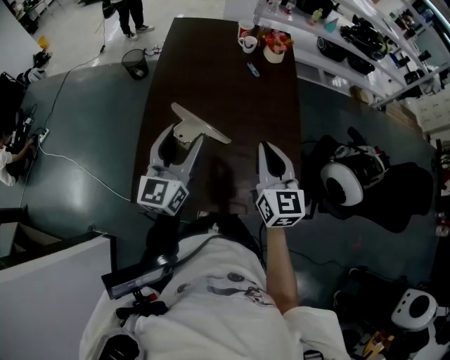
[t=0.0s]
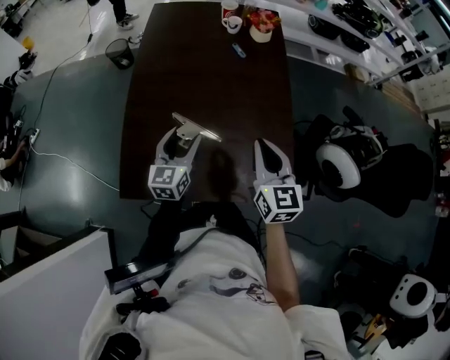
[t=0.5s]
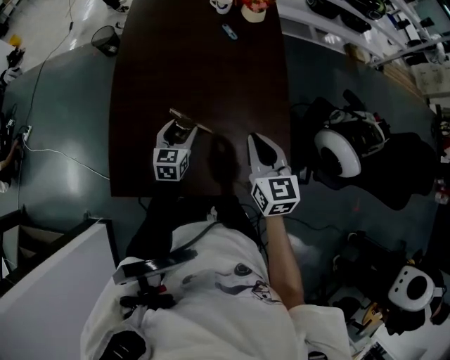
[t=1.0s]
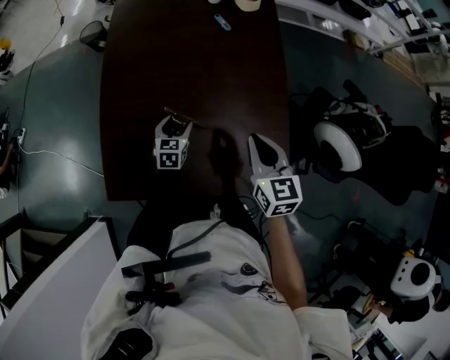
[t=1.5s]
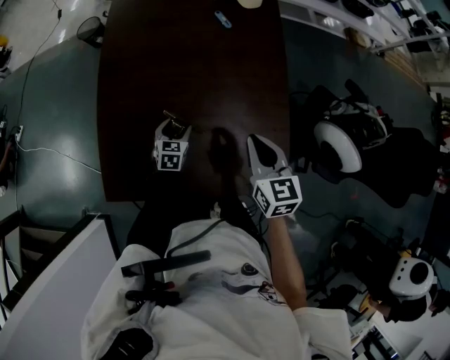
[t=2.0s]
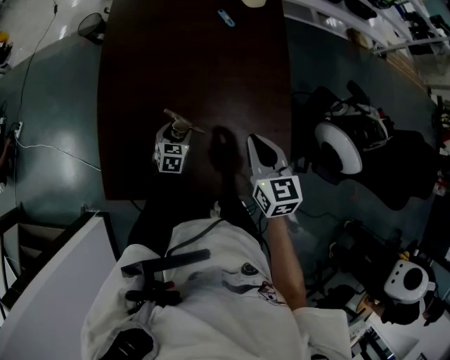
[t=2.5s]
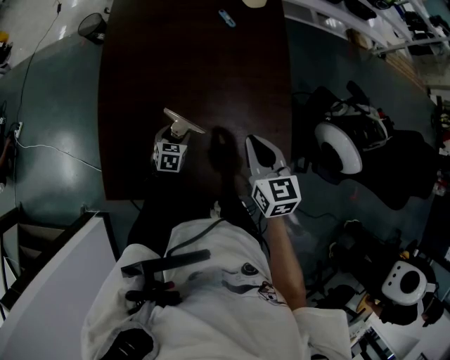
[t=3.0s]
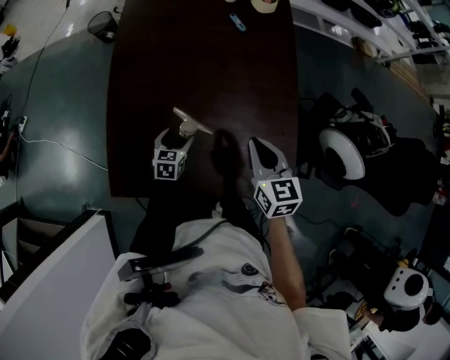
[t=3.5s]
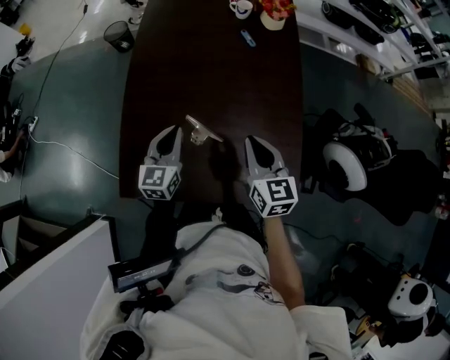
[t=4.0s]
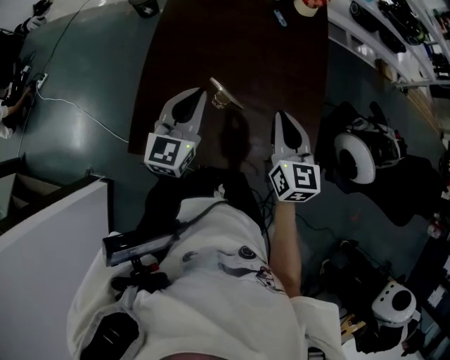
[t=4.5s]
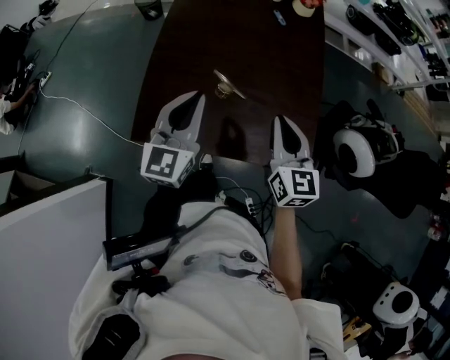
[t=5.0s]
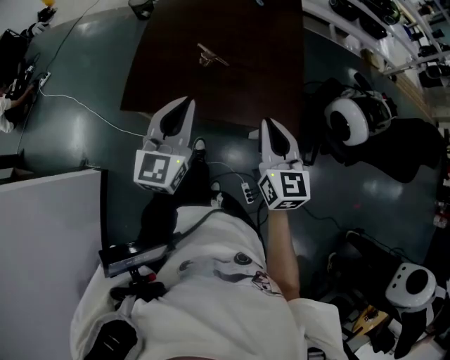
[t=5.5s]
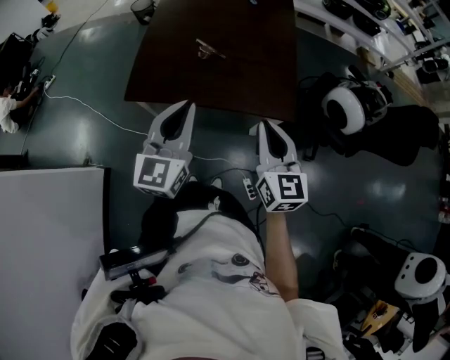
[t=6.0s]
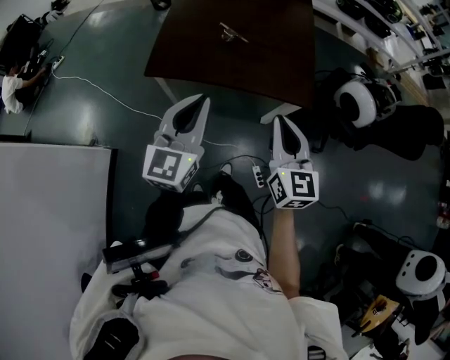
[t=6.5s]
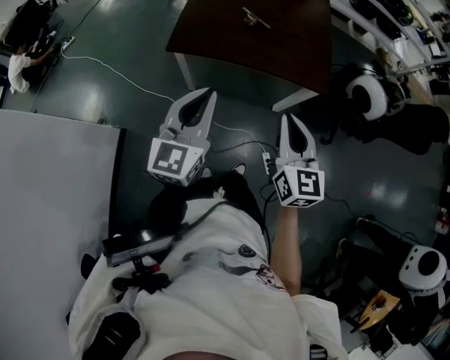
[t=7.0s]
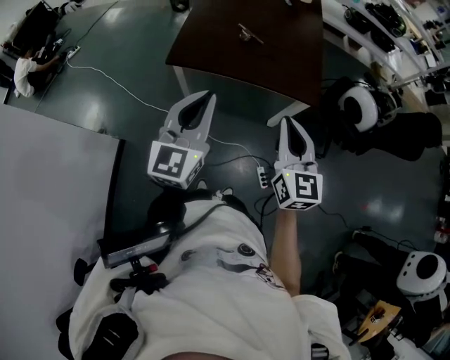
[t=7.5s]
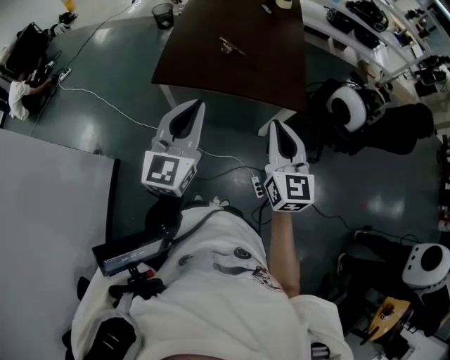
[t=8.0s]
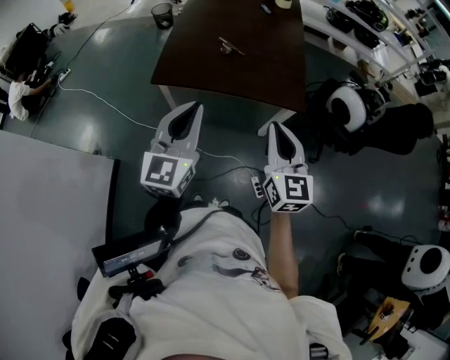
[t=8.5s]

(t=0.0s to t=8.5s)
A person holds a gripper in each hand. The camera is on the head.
t=0.0s - t=2.0s: The right gripper heads downward and to the right, covering some 15 cm, and turns by roughly 20 degrees; the left gripper shifts approximately 35 cm downward, and tilts its fingers roughly 50 degrees downward.
t=2.0s - t=4.0s: The right gripper is displaced to the left by about 5 cm, while the left gripper shifts roughly 20 cm upward, changes its angle by some 30 degrees, and closes its fingers.
t=4.0s - t=6.5s: The left gripper is displaced backward and upward by roughly 40 cm. The right gripper shifts some 35 cm backward.
t=6.5s - t=8.5s: The left gripper is displaced backward by roughly 5 cm; the right gripper shifts by about 5 cm.

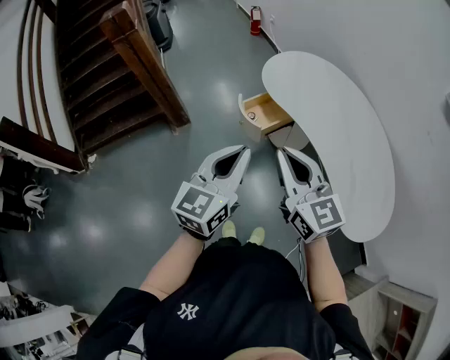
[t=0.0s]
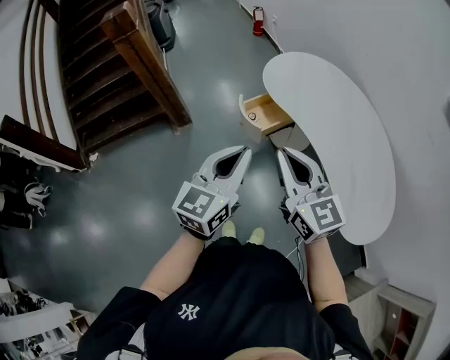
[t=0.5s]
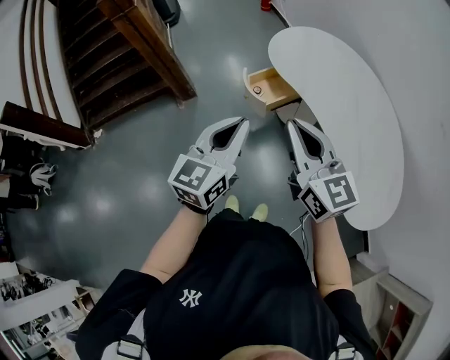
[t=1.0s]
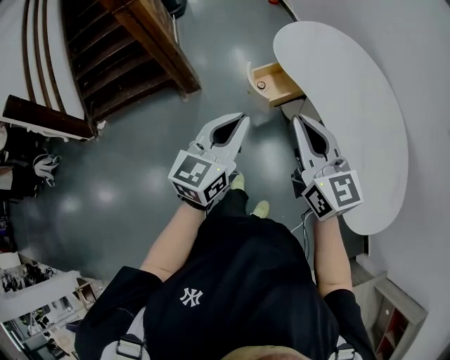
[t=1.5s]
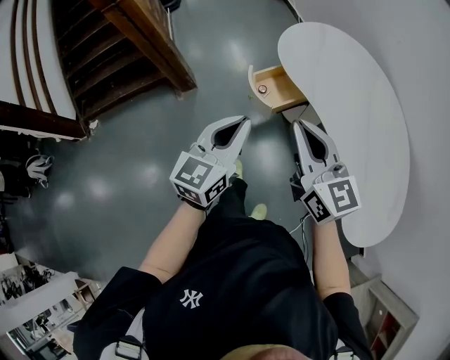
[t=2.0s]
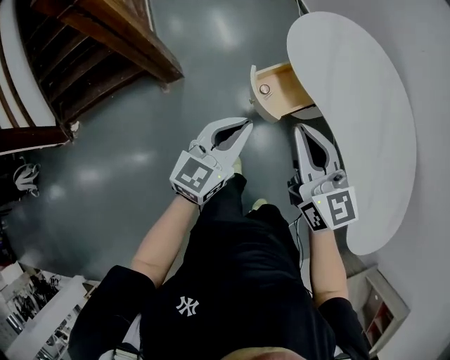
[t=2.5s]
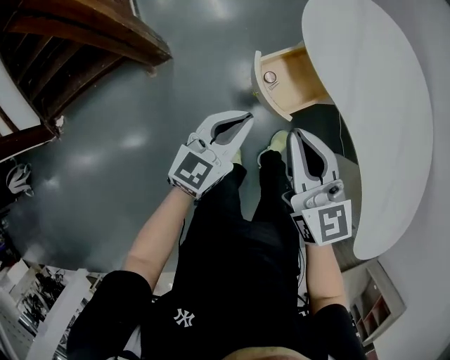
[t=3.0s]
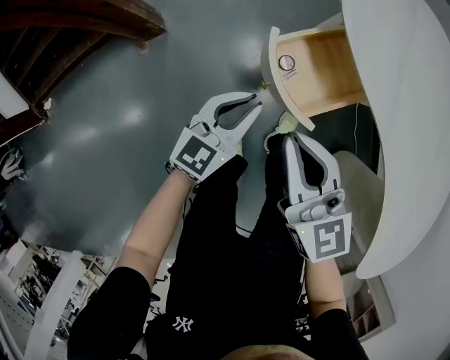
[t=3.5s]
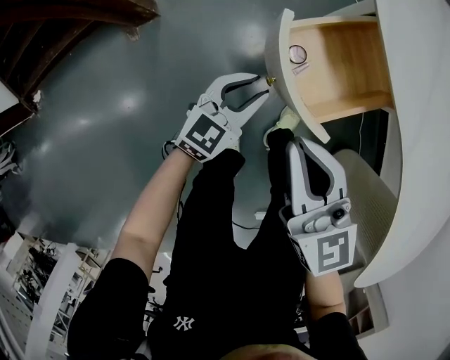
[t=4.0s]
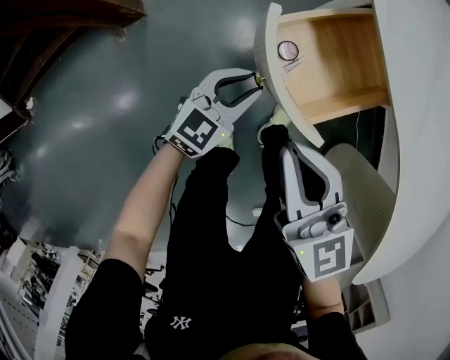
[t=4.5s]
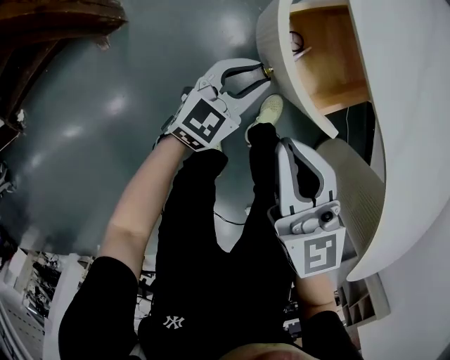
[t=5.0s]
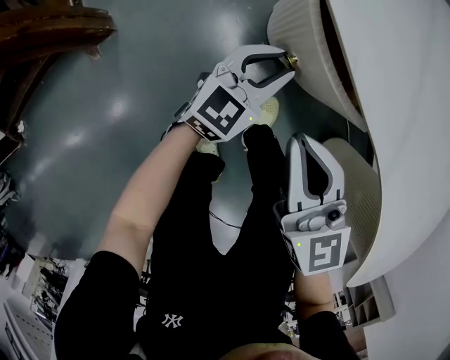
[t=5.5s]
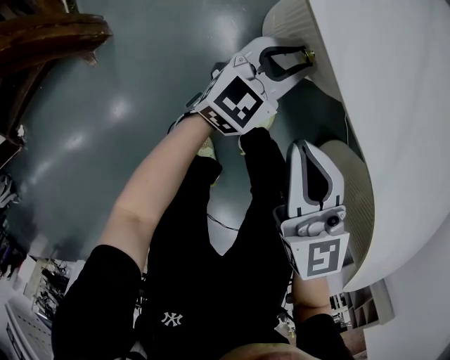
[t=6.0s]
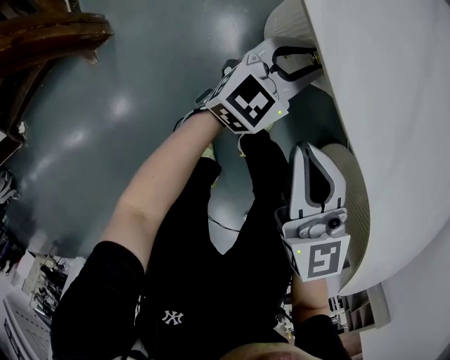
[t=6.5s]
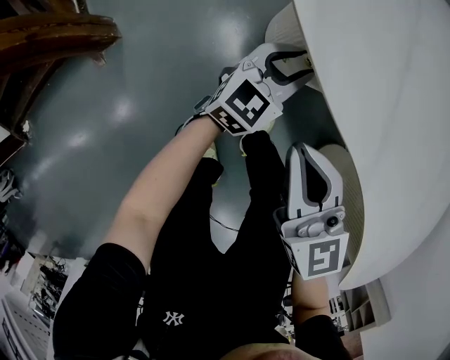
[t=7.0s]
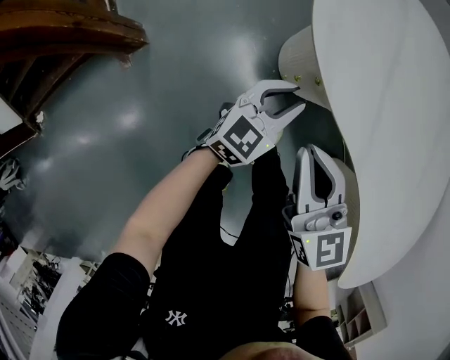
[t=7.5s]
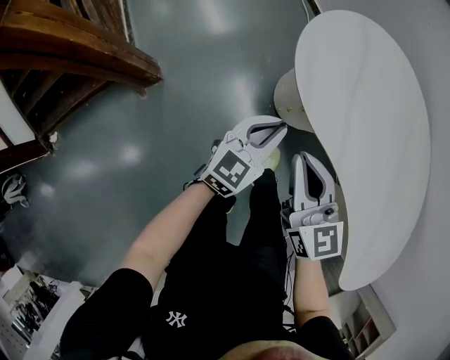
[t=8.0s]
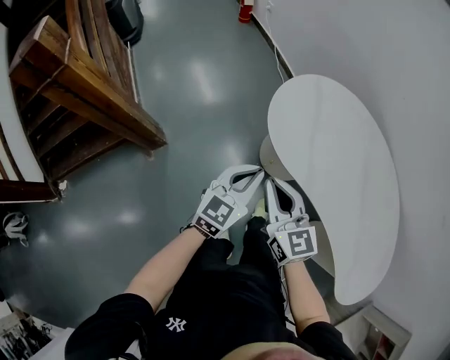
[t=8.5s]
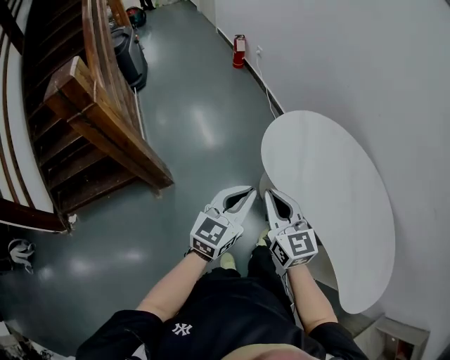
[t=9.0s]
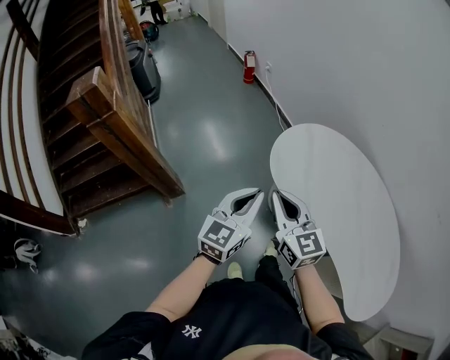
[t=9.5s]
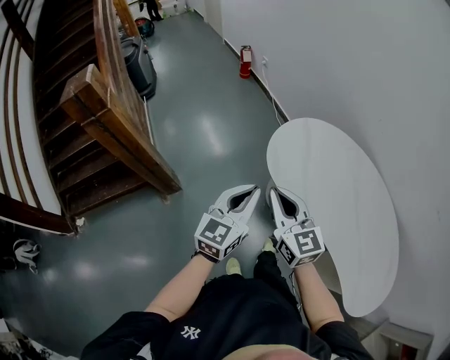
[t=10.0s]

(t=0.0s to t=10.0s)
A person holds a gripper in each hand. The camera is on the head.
t=0.0s - t=2.0s: The left gripper goes roughly 15 cm forward and downward. Meanwhile the right gripper is displaced forward by roughly 10 cm.
t=2.0s - t=4.0s: The grippers both shift downward and forward by roughly 50 cm. The left gripper changes its angle by some 20 degrees, and opens up.
t=4.0s - t=6.0s: The right gripper travels to the right, forward and downward by approximately 15 cm, while the left gripper is displaced to the right and forward by some 25 cm.
t=6.0s - t=8.0s: The right gripper heads upward, covering approximately 20 cm. Meanwhile the left gripper is displaced upward, to the left and backward by roughly 25 cm.
t=8.0s - t=10.0s: The two grippers go some 20 cm upward.

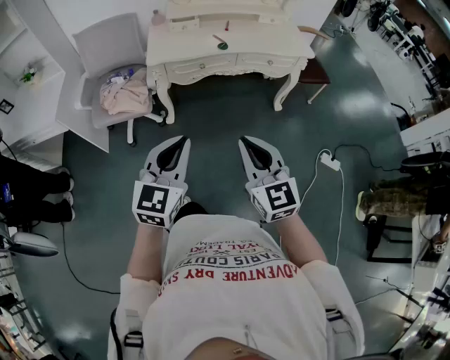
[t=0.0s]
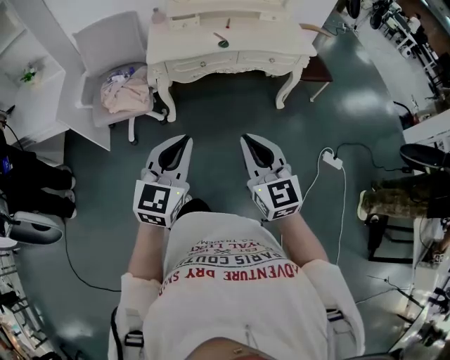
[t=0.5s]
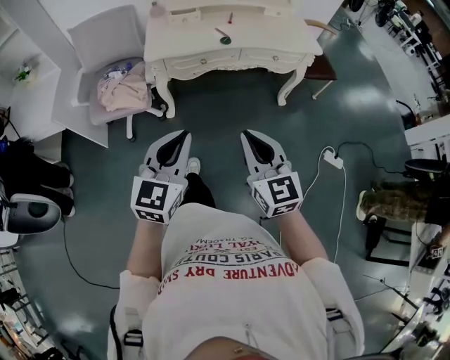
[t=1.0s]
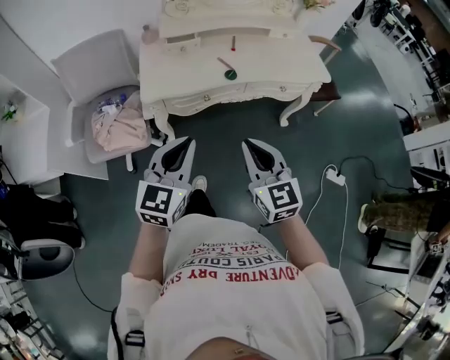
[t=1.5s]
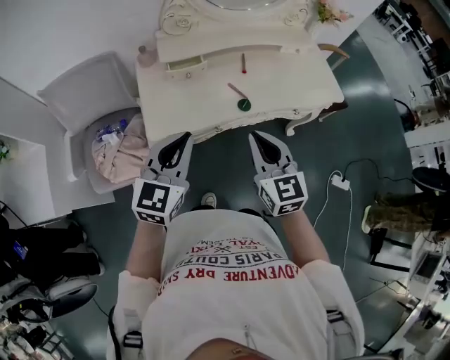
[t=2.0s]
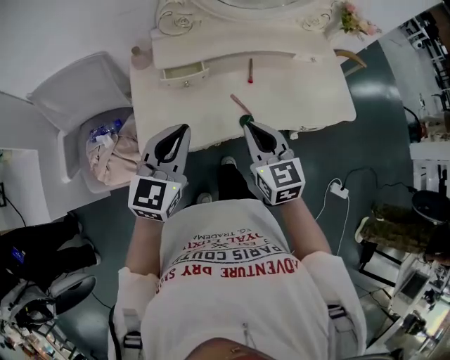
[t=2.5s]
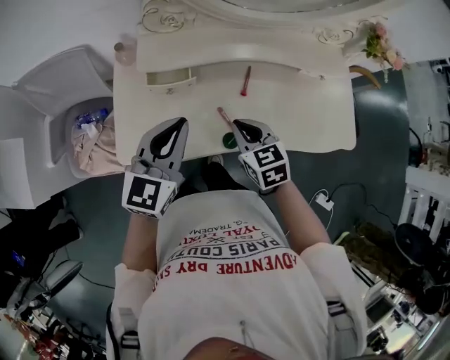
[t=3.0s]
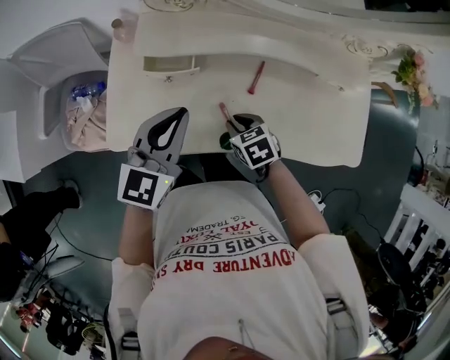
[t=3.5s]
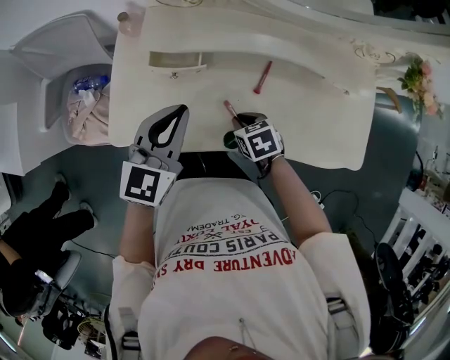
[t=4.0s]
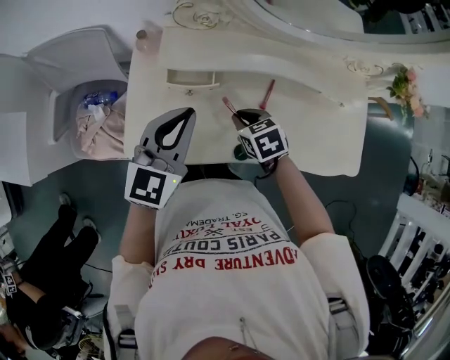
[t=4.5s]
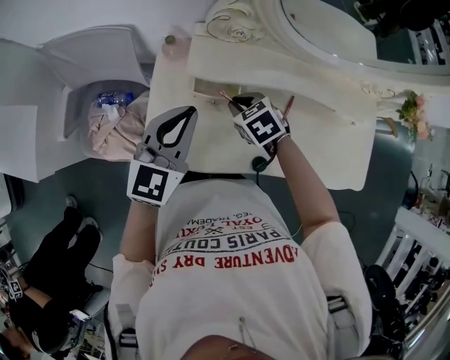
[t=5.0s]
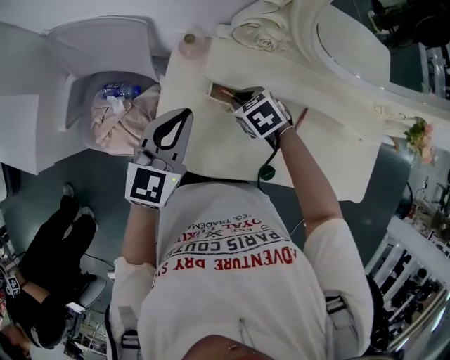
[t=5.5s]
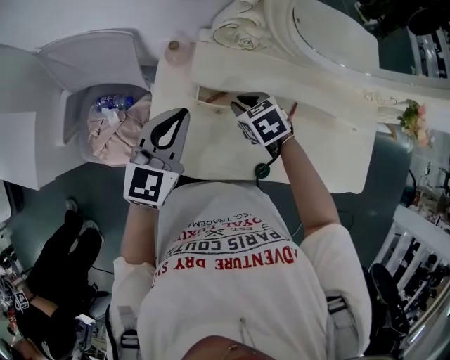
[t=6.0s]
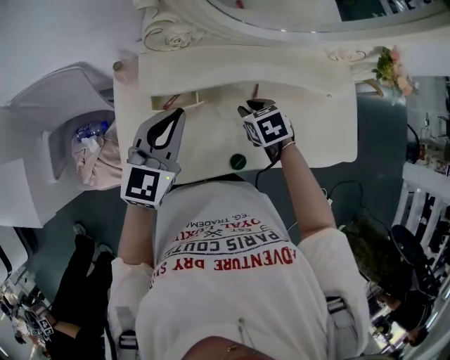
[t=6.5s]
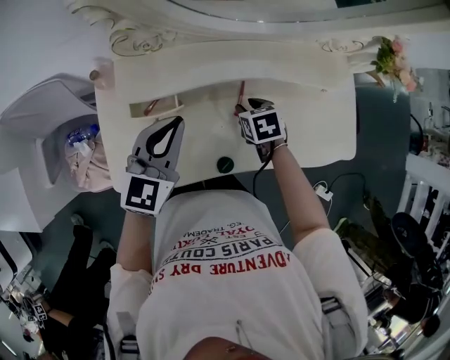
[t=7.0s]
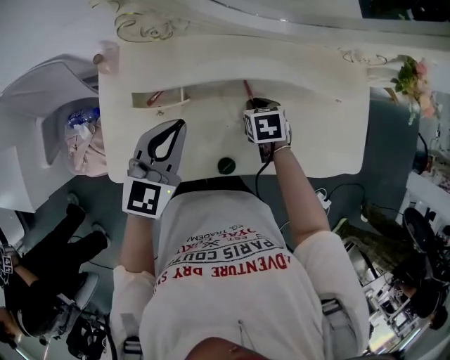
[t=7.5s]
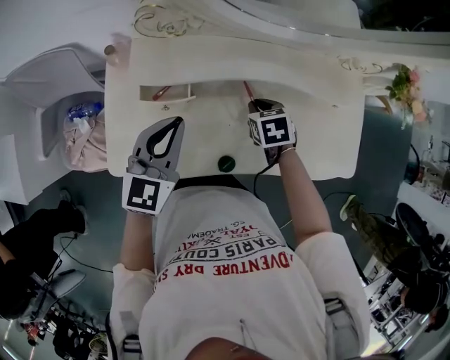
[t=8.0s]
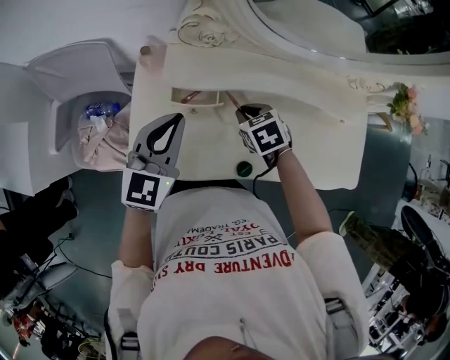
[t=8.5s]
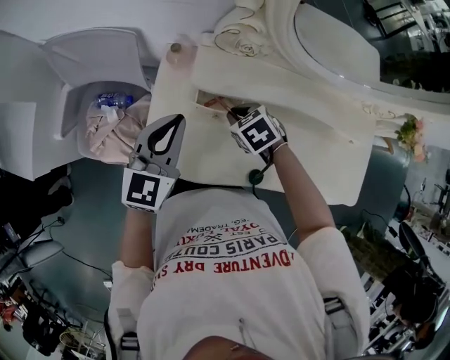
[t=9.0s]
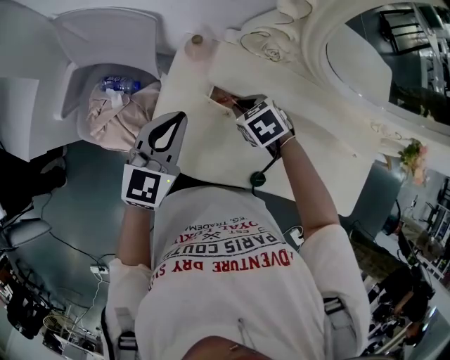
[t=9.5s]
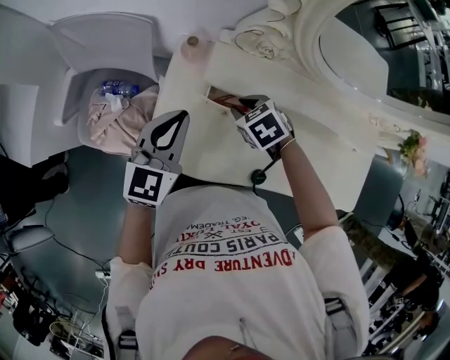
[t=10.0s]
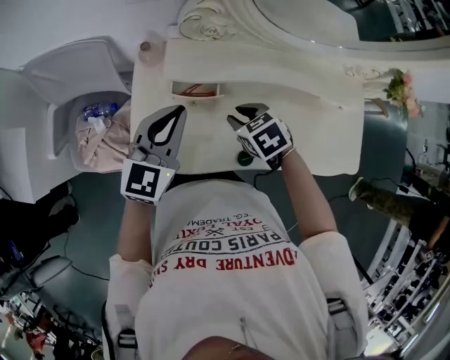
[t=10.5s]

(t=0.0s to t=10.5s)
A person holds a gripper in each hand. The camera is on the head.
t=0.0s - t=2.0s: Both grippers are carried forward, approximately 50 cm.
t=2.0s - t=4.0s: The right gripper moves downward, about 30 cm, and tilts its fingers approximately 50 degrees downward. Meanwhile the left gripper ends up some 30 cm from where it was.
t=4.0s - t=6.5s: The right gripper is displaced forward and upward by some 15 cm, and reaches roughly 15 cm to the left, then returns, while the left gripper goes about 10 cm forward, and moves about 15 cm to the left and comes back.
t=6.5s - t=8.5s: The right gripper moves to the left, approximately 5 cm.
t=8.5s - t=10.5s: The left gripper reaches some 10 cm to the left, then returns.
